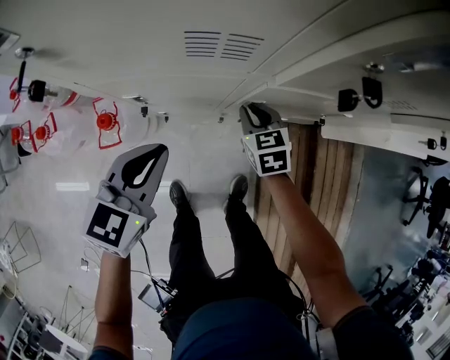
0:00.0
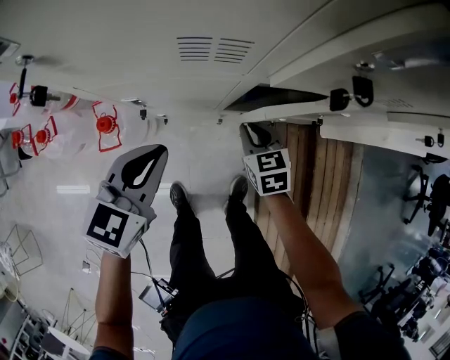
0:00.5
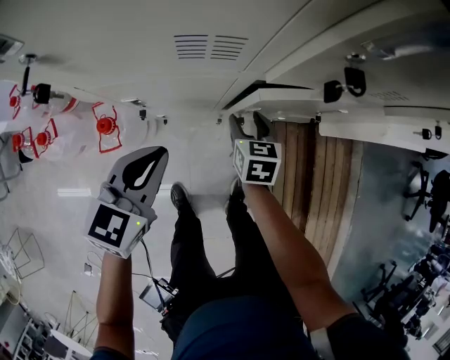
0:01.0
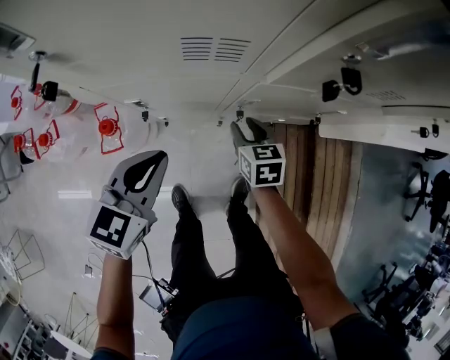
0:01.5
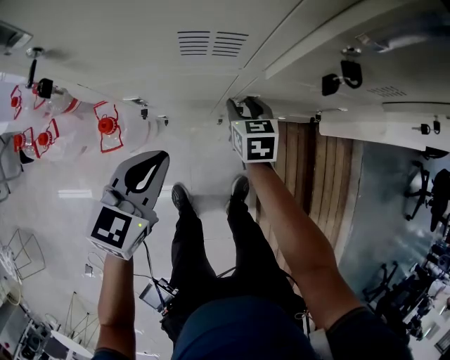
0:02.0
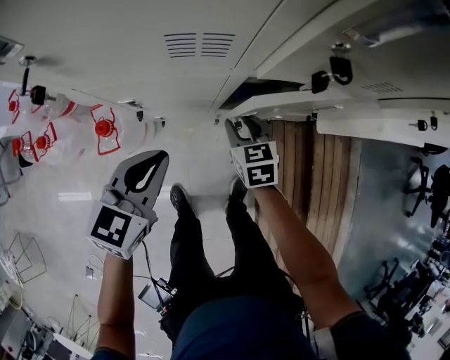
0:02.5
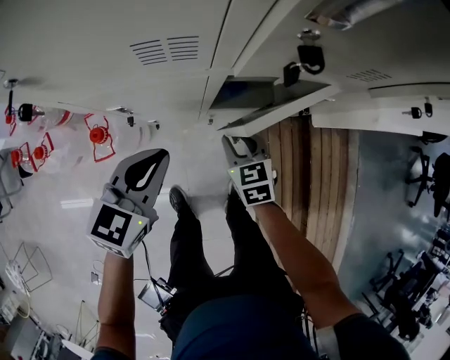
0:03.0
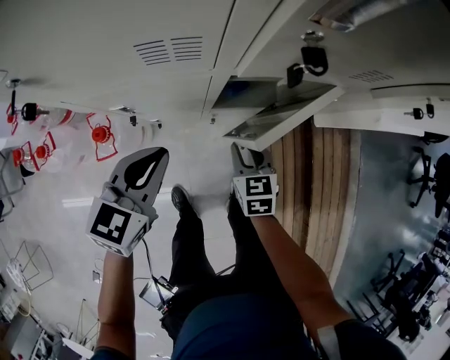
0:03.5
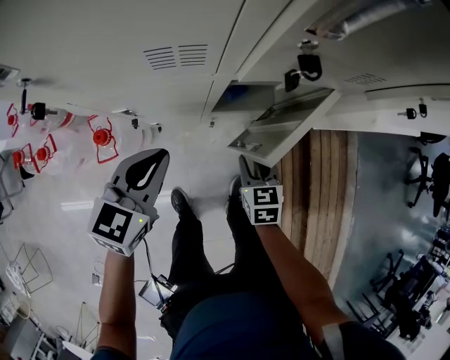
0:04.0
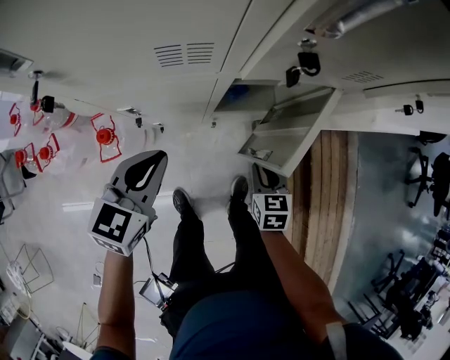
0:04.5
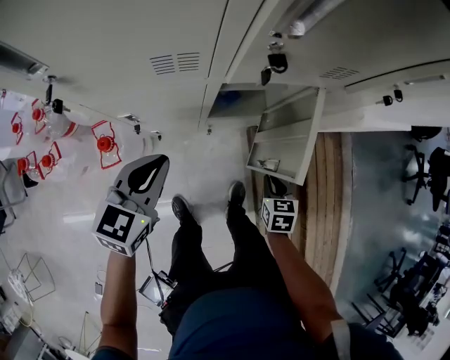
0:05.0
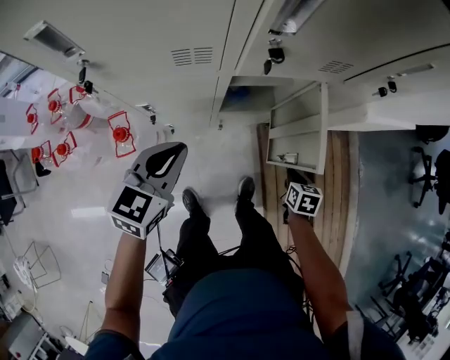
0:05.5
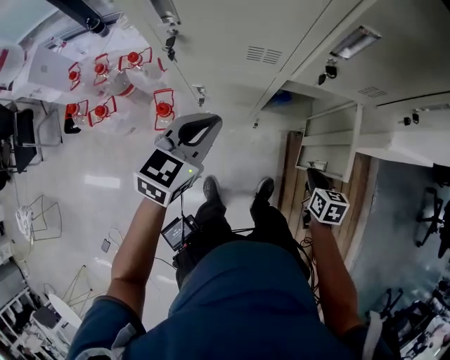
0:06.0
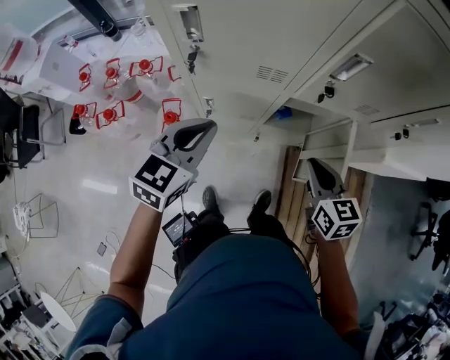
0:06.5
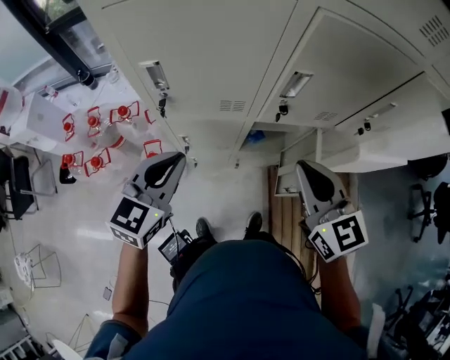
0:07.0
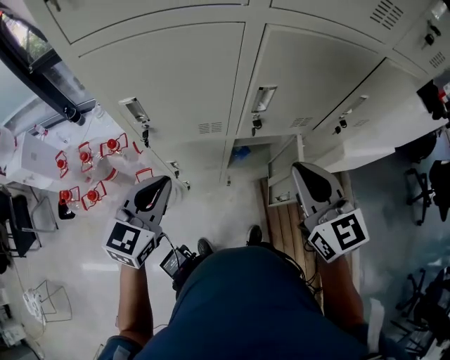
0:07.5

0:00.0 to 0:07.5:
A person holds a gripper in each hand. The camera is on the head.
0:00.0 to 0:02.0: The right gripper opens up.
0:02.0 to 0:04.0: The right gripper goes roughly 15 cm backward and to the right.
0:04.0 to 0:05.5: The left gripper moves upward, approximately 5 cm, while the right gripper moves to the right, some 15 cm, and turns by approximately 30 degrees.
0:05.5 to 0:07.5: The right gripper moves upward, about 50 cm, and tips its fingers upward by about 50 degrees, while the left gripper is displaced upward by about 20 cm.

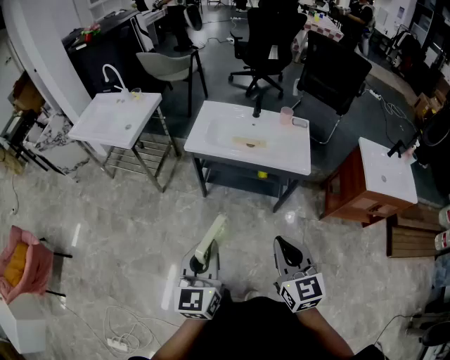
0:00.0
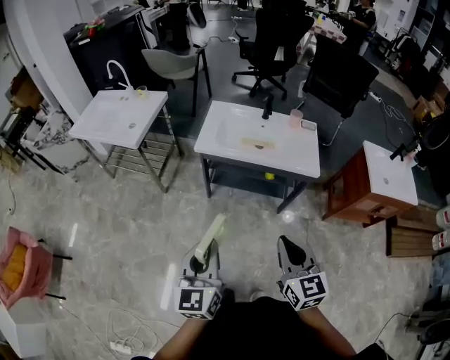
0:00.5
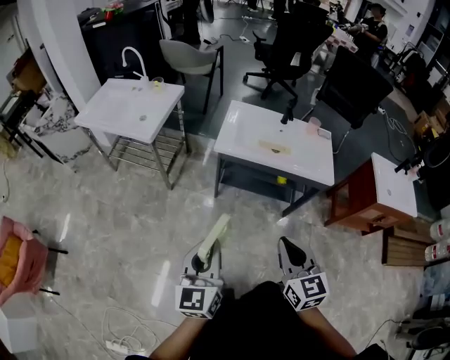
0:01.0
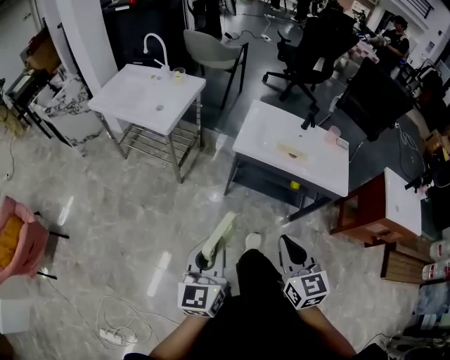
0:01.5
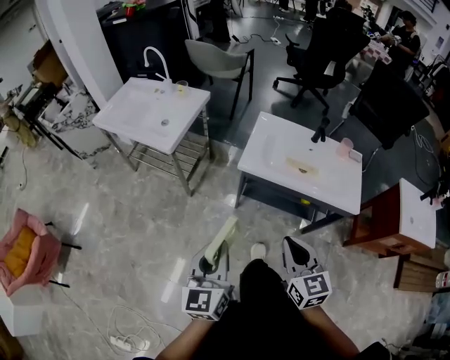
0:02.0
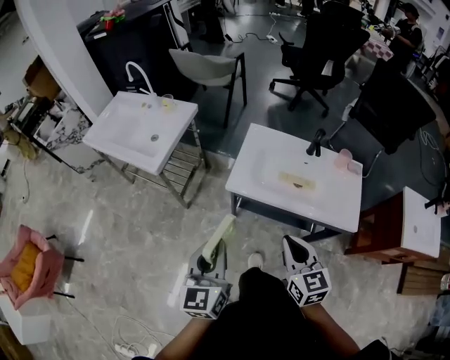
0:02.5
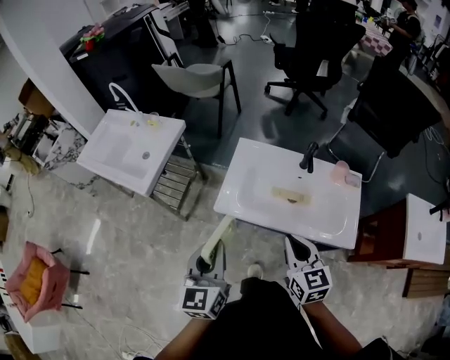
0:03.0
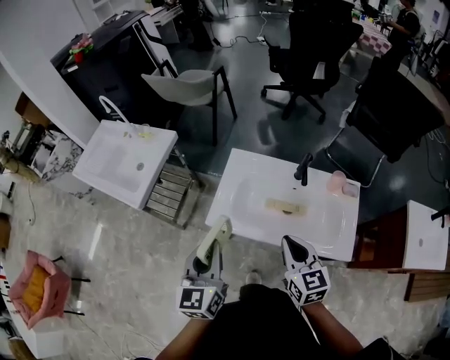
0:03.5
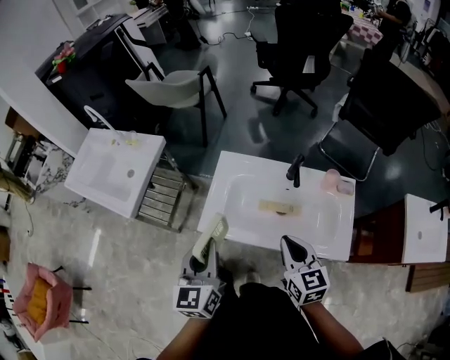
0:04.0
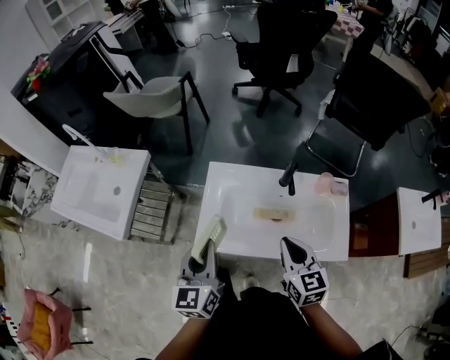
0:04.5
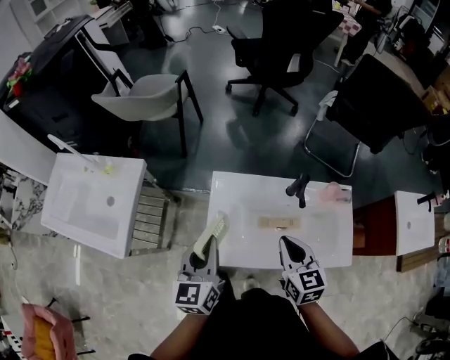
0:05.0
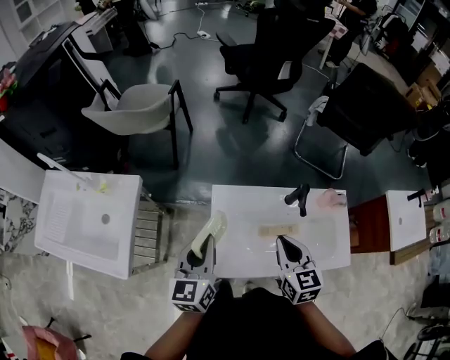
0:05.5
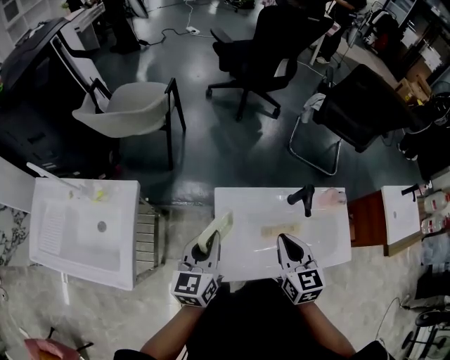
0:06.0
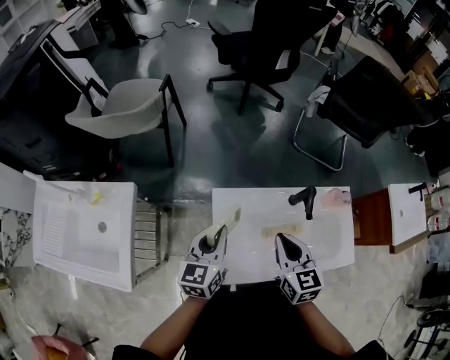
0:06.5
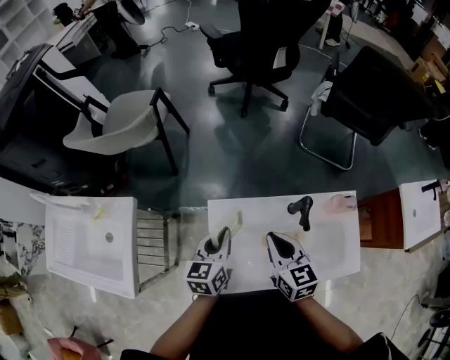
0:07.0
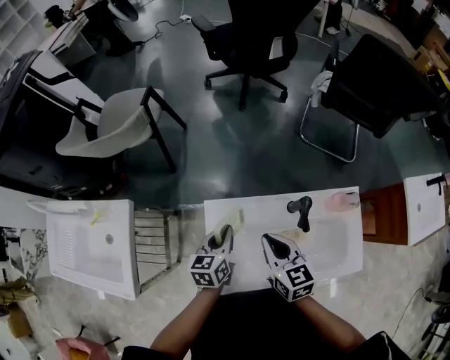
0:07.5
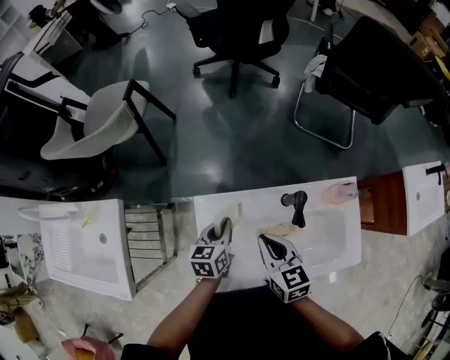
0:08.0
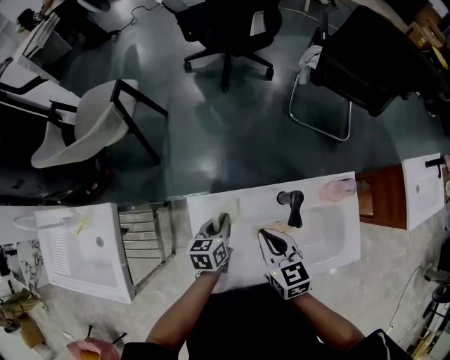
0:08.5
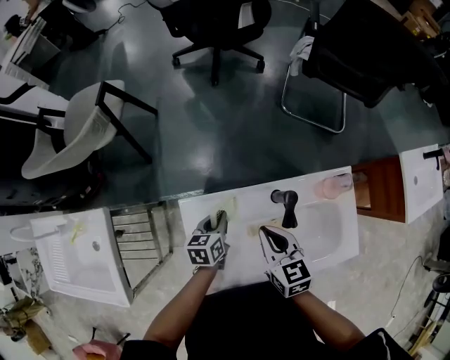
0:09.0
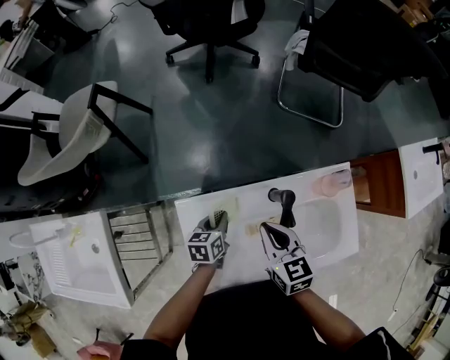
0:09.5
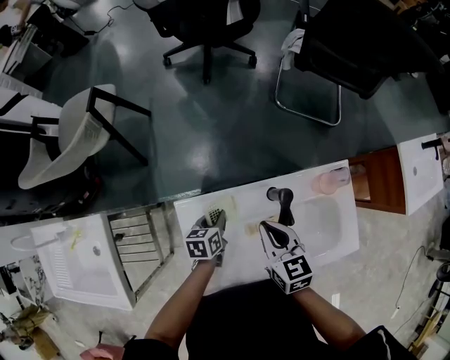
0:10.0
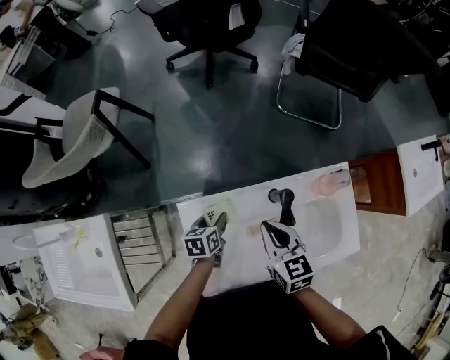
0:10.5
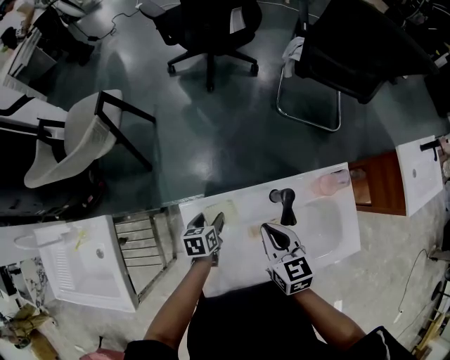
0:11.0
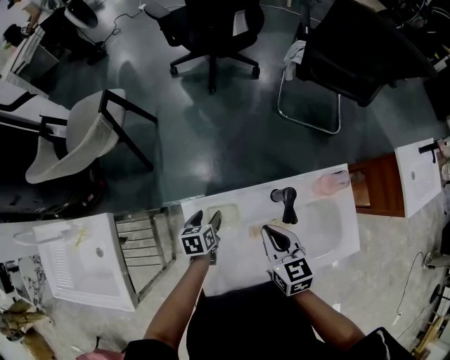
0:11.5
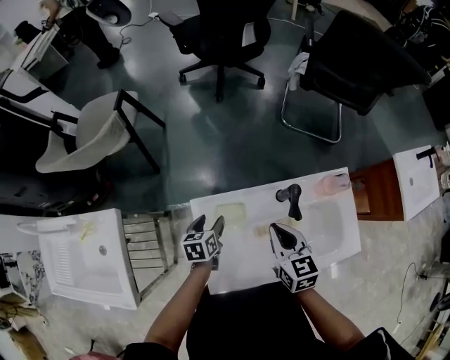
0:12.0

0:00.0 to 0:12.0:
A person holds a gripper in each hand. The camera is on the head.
0:00.0 to 0:02.0: The right gripper travels forward and to the left by about 30 cm; the left gripper moves to the left and forward, about 25 cm.
0:02.0 to 0:04.0: Both grippers travel together forward and to the right, roughly 40 cm.
0:04.0 to 0:06.0: The right gripper shifts by roughly 25 cm, and rotates roughly 20 degrees, while the left gripper shifts by some 30 cm, and turns by approximately 30 degrees.
0:06.0 to 0:08.0: The right gripper is displaced downward, forward and to the right by about 15 cm. The left gripper is displaced downward, to the right and forward by approximately 25 cm, and rotates roughly 20 degrees.
0:08.0 to 0:10.0: The left gripper heads downward, covering roughly 10 cm, while the right gripper shifts approximately 5 cm to the right.
0:10.0 to 0:12.0: The left gripper travels to the left by approximately 10 cm, and opens its fingers, while the right gripper changes place by approximately 5 cm.

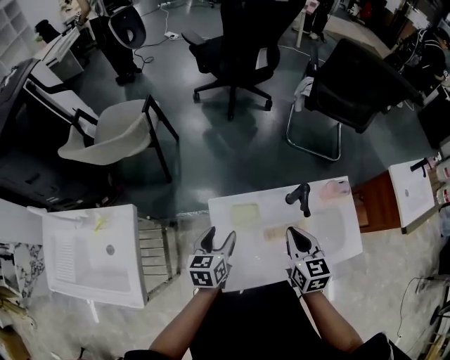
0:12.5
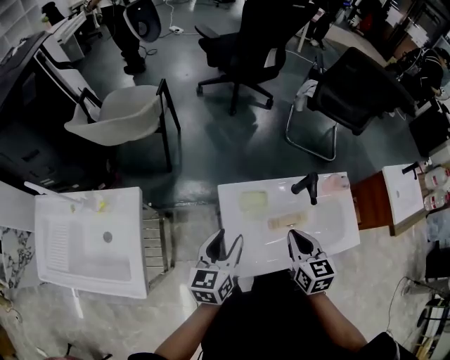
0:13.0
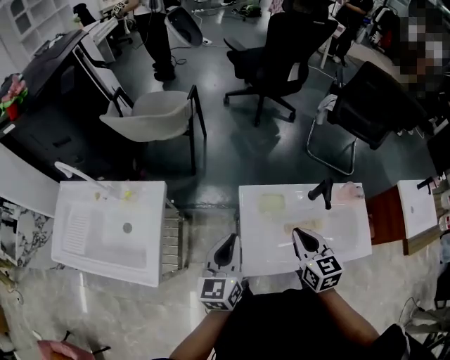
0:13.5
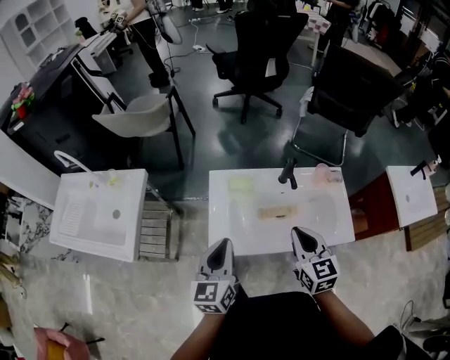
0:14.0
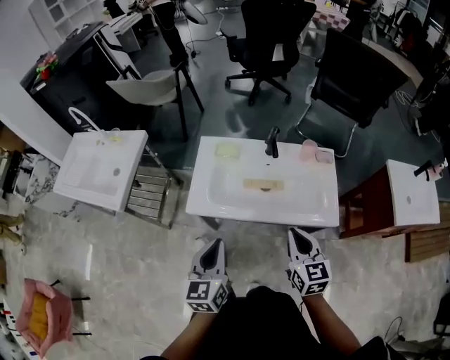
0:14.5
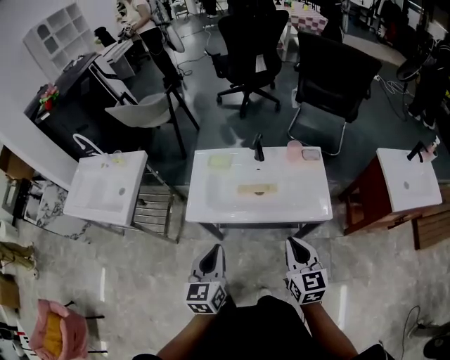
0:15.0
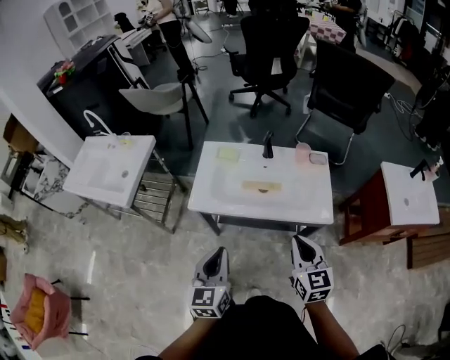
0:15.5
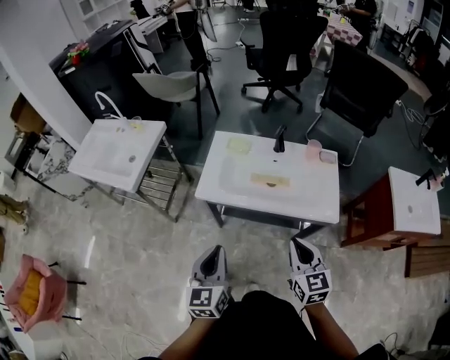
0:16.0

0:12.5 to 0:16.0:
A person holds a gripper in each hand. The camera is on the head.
0:12.5 to 0:14.5: Both grippers travel together backward and to the right, some 40 cm. The left gripper rotates roughly 30 degrees, and closes up.
0:14.5 to 0:16.0: The two grippers go roughly 10 cm backward.

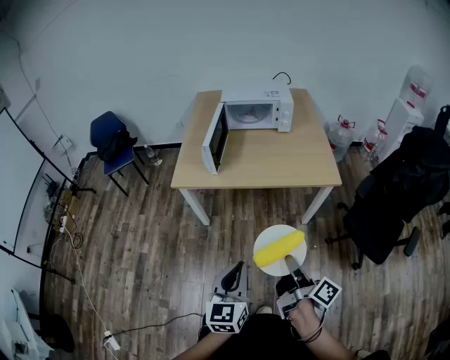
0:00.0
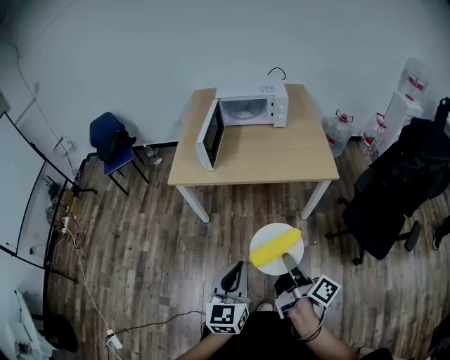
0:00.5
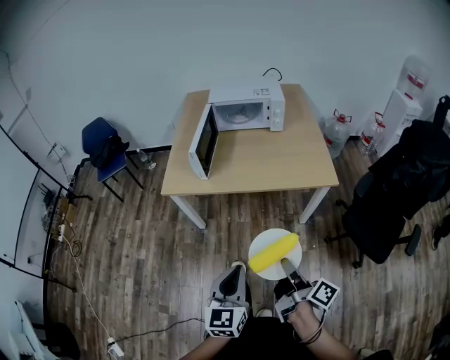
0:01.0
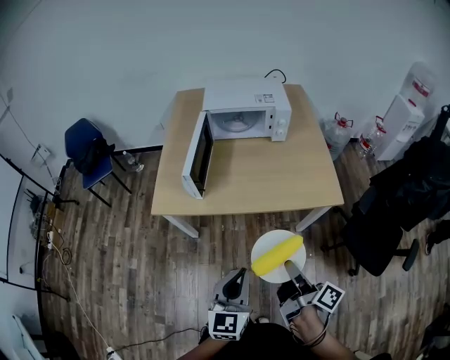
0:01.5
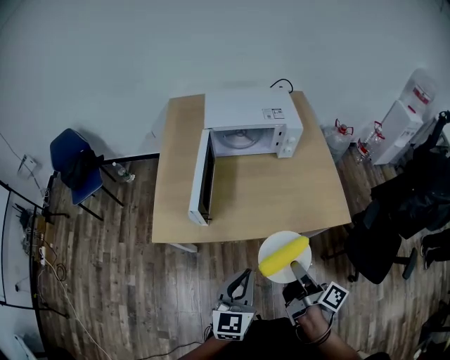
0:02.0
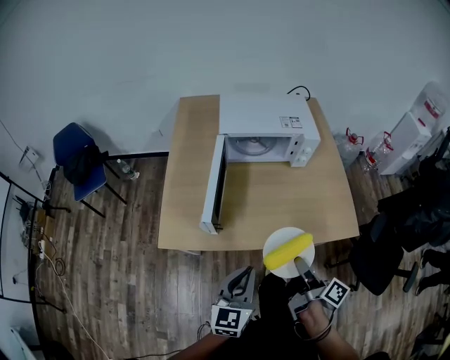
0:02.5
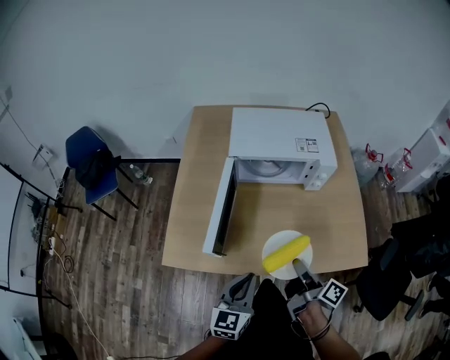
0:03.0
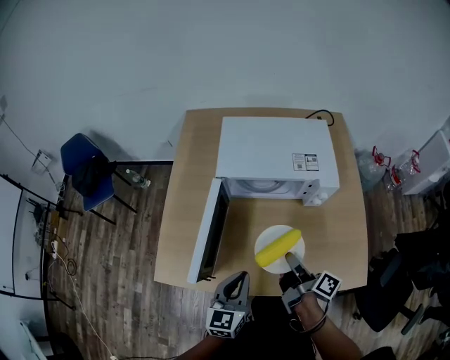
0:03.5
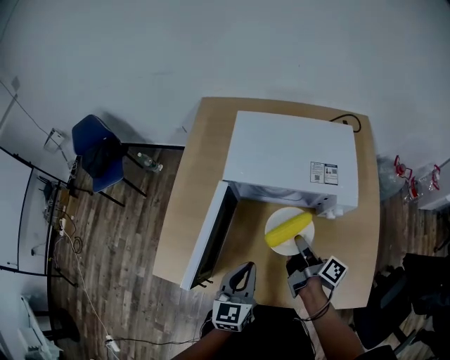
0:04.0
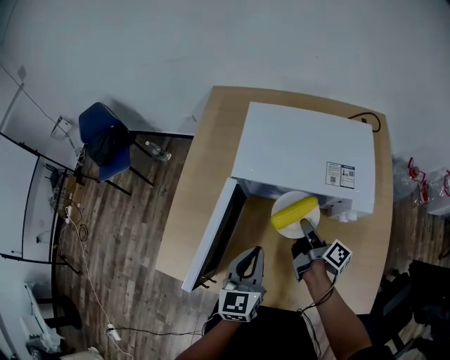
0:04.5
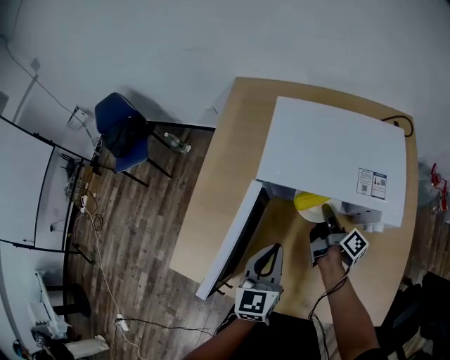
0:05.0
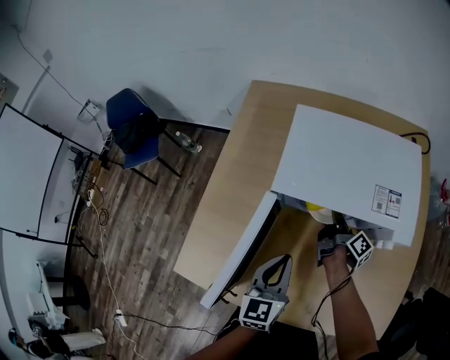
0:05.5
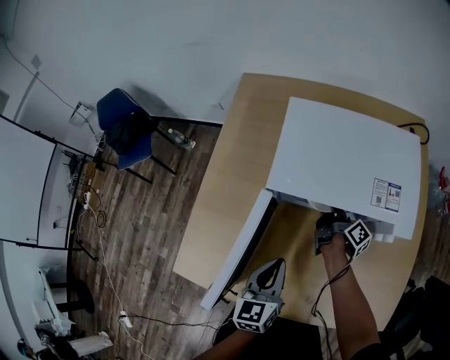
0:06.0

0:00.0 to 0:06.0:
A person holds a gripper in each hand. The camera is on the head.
0:00.0 to 0:02.0: The left gripper shifts by some 30 cm.
0:02.0 to 0:04.0: The left gripper ends up some 30 cm from where it was.
0:04.0 to 0:06.0: The left gripper changes place by some 10 cm.
